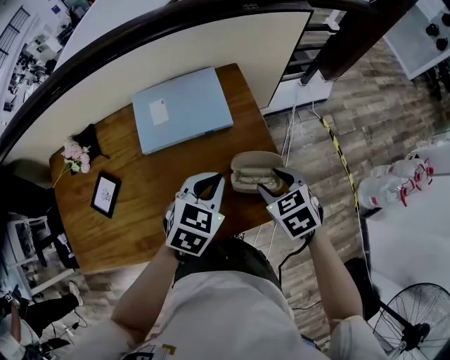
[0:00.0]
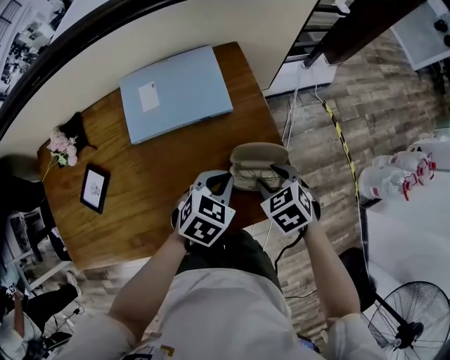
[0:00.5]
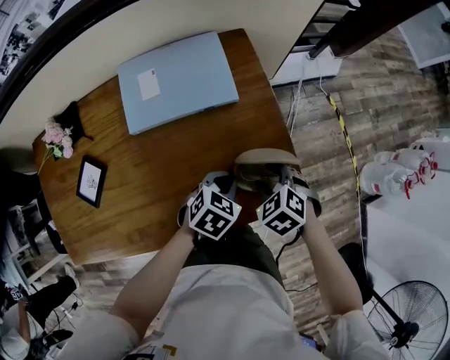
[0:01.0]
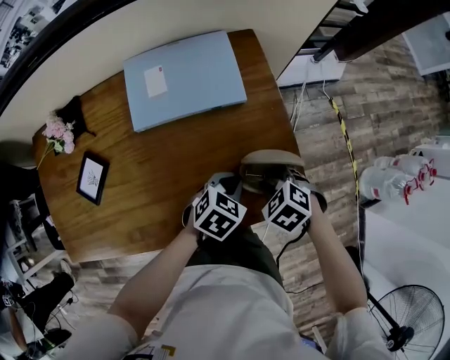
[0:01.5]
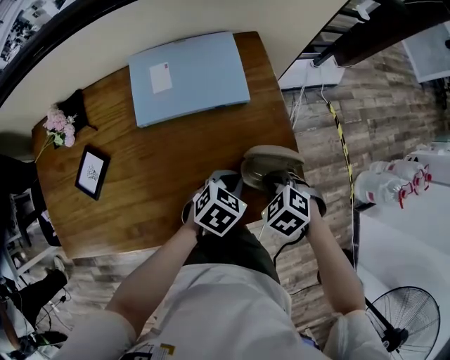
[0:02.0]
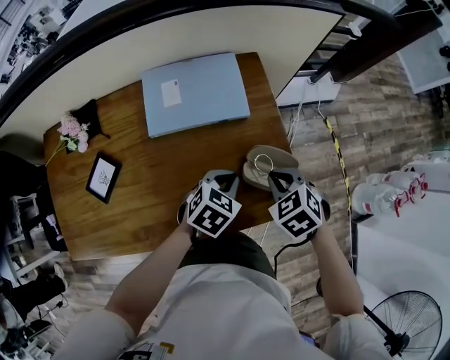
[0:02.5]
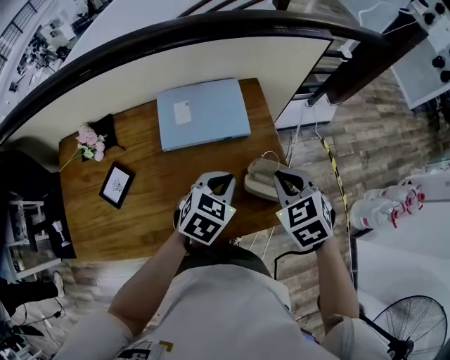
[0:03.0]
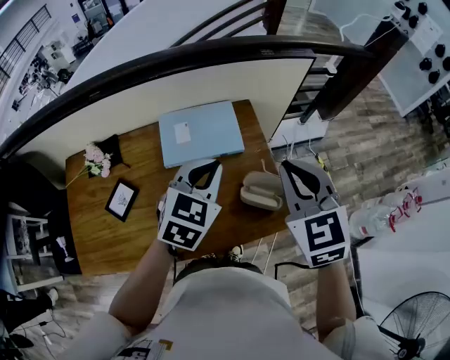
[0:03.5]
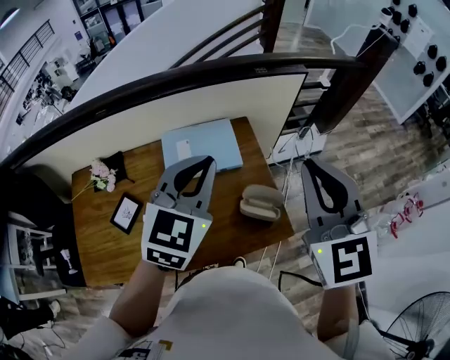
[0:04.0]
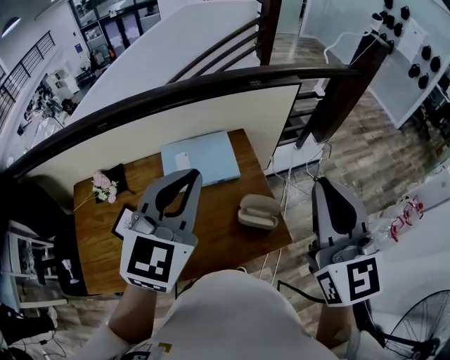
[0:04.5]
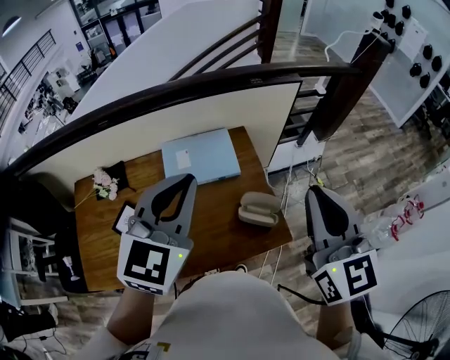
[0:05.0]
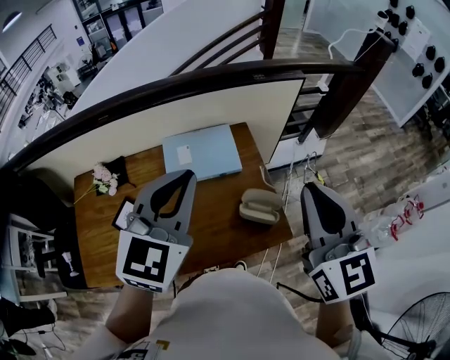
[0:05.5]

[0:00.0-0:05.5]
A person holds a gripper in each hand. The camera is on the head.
0:00.0 to 0:02.0: The grippers both shift downward by some 15 cm. The right gripper changes its angle by approximately 30 degrees, and closes up.
0:02.0 to 0:03.5: Both grippers move upward, some 35 cm. The right gripper angles its fingers upward, by roughly 50 degrees. The left gripper turns by about 30 degrees.
0:03.5 to 0:05.5: The left gripper moves upward, approximately 15 cm. The right gripper shifts about 15 cm upward and backward, and swivels some 30 degrees.

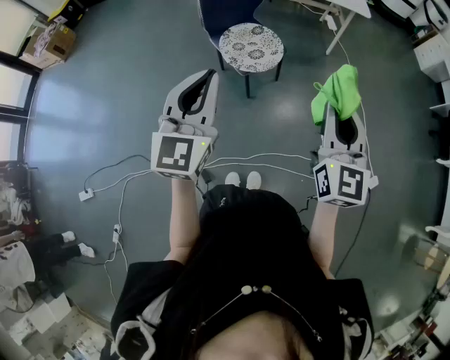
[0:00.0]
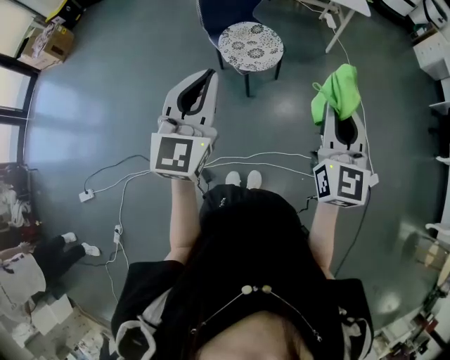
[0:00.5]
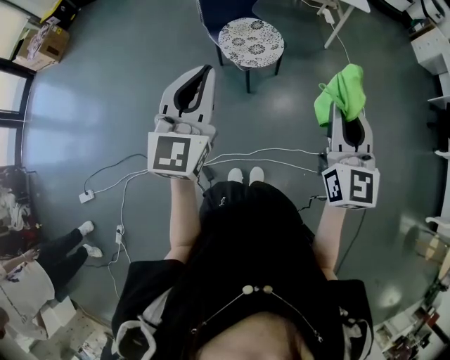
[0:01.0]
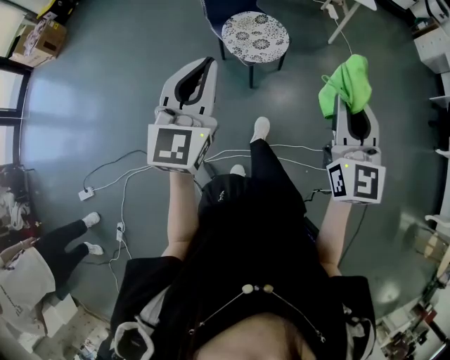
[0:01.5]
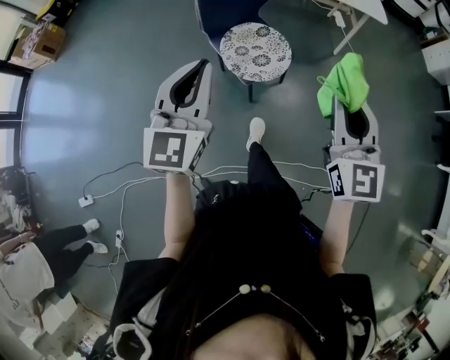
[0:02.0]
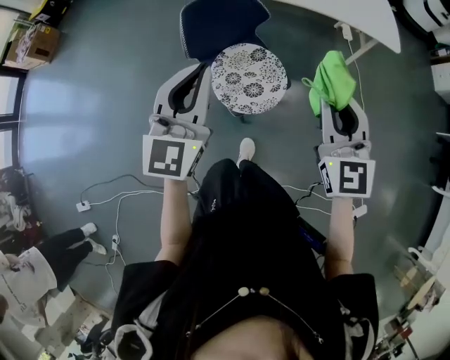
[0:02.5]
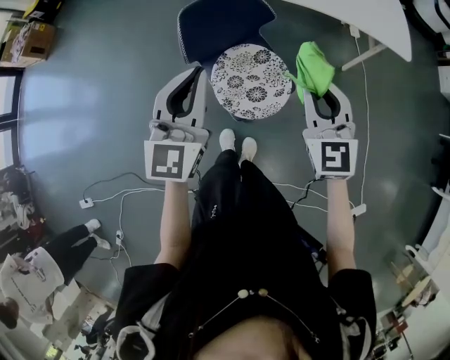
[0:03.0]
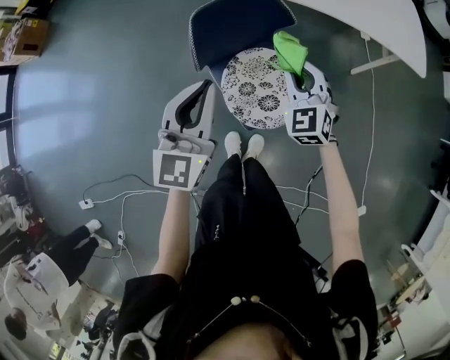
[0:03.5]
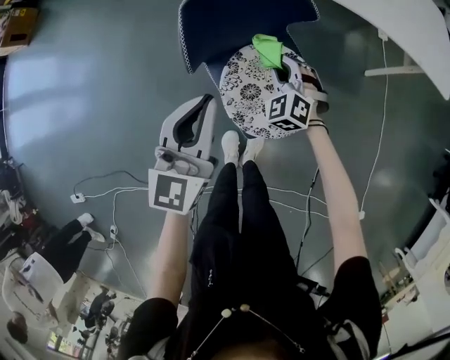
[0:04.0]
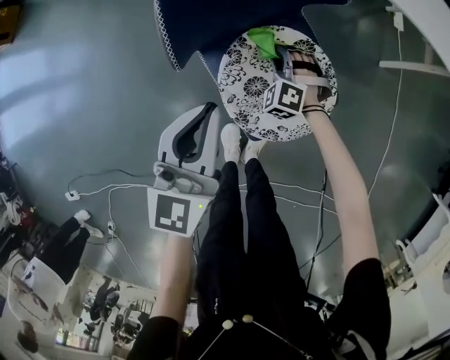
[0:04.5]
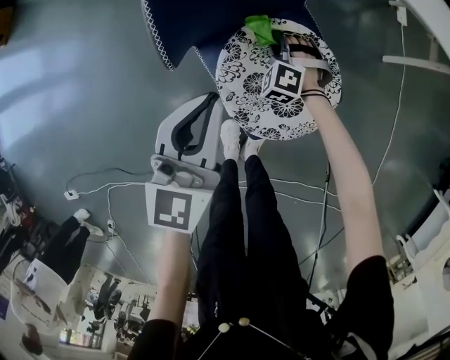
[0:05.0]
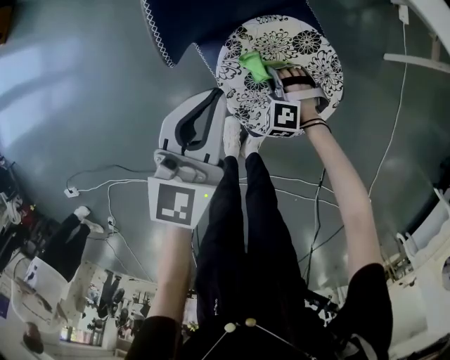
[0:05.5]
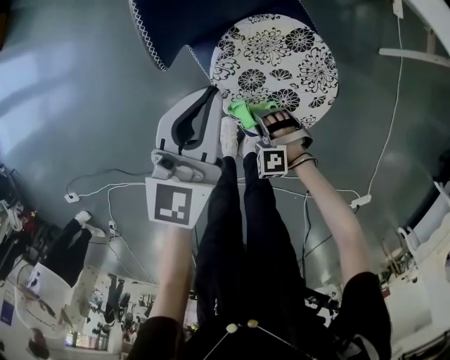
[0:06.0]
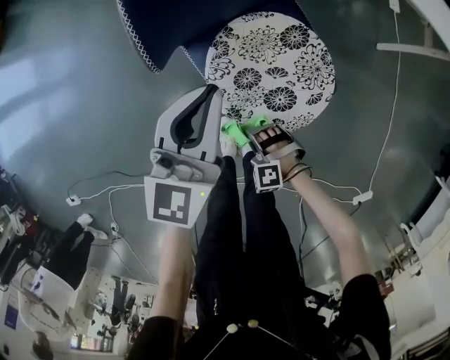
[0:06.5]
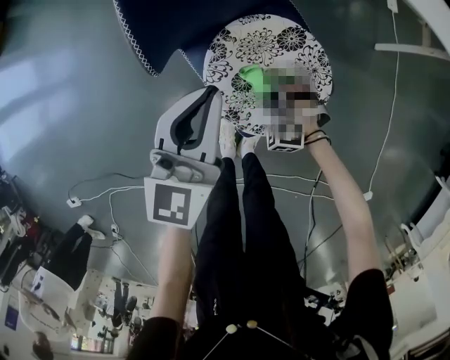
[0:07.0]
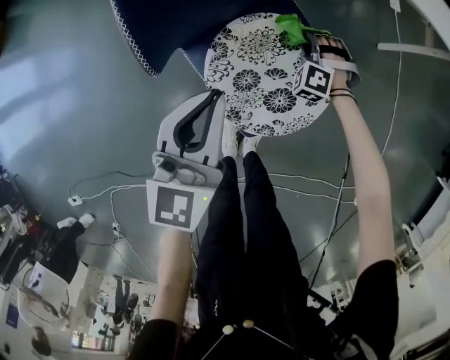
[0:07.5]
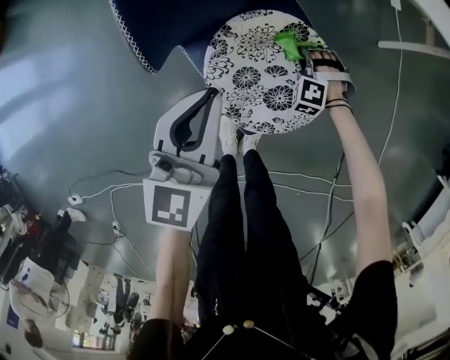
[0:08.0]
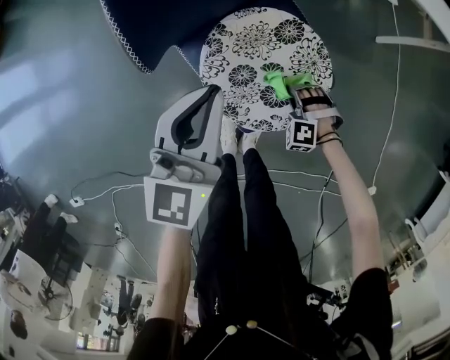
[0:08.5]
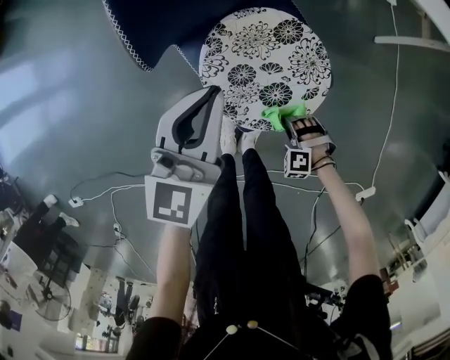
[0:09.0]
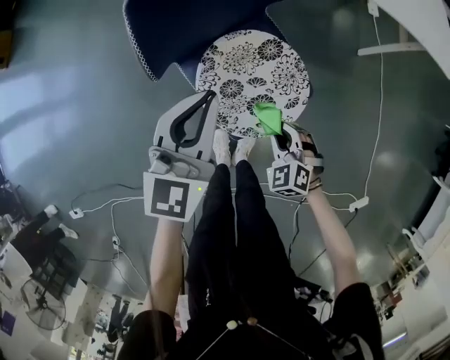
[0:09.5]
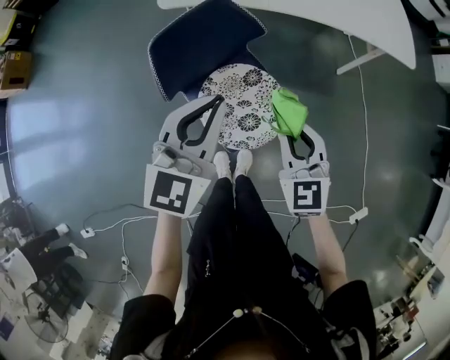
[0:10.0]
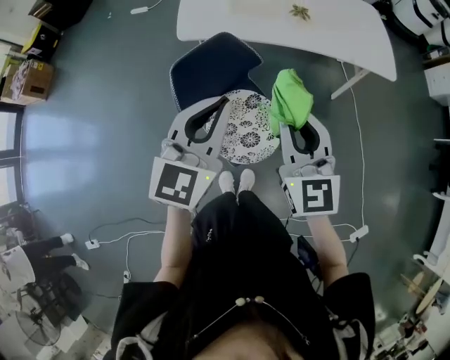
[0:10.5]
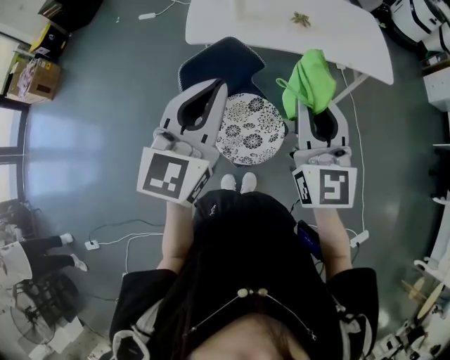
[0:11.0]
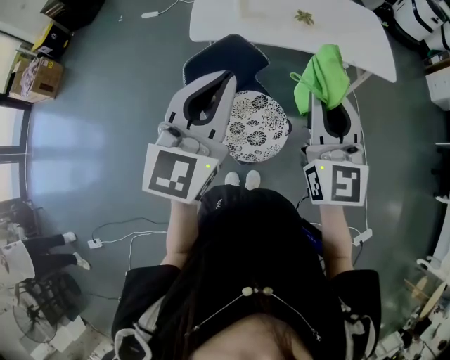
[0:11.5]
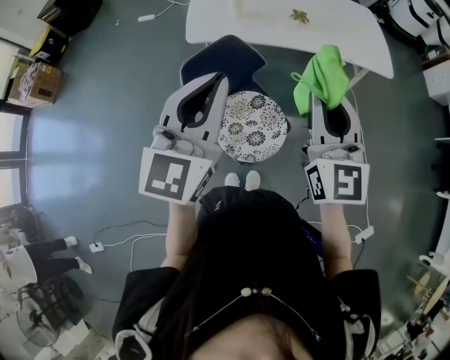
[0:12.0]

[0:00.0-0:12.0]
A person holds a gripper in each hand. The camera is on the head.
0:00.0 to 0:02.0: The grippers both shift forward by roughly 15 cm.
0:02.0 to 0:04.0: The pair of grippers is taken forward, roughly 50 cm. The left gripper moves downward, some 25 cm. Meanwhile the right gripper moves downward, some 40 cm, and points its fingers approximately 40 degrees further downward.
0:04.0 to 0:06.0: The right gripper heads downward and backward, covering roughly 30 cm, and changes its angle by roughly 40 degrees, while the left gripper shifts roughly 15 cm downward.
0:06.0 to 0:08.0: The right gripper shifts by about 25 cm, and swivels approximately 20 degrees.
0:08.0 to 0:10.0: The left gripper goes approximately 25 cm upward; the right gripper moves upward, about 50 cm, and rolls clockwise, seen from behind, by about 60 degrees.
0:10.0 to 0:12.0: The grippers both shift upward by approximately 25 cm. The right gripper rotates about 30 degrees.

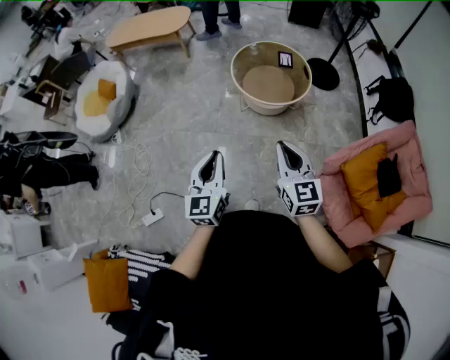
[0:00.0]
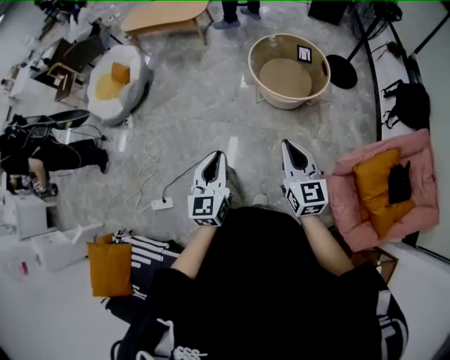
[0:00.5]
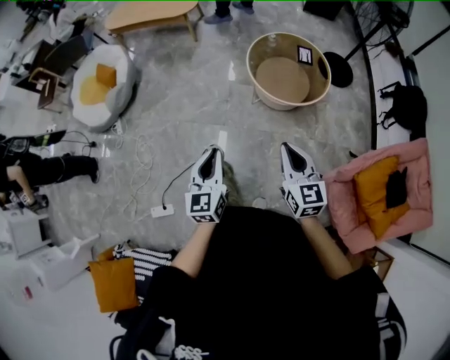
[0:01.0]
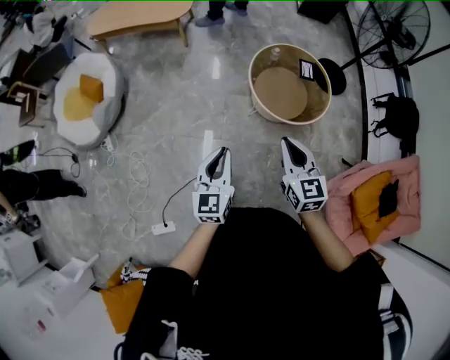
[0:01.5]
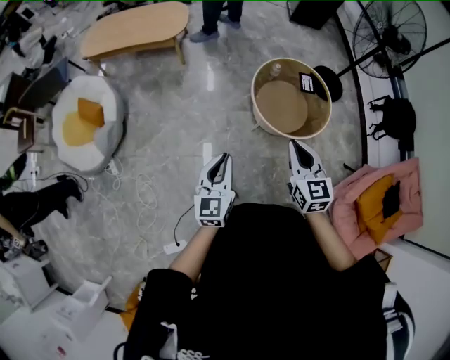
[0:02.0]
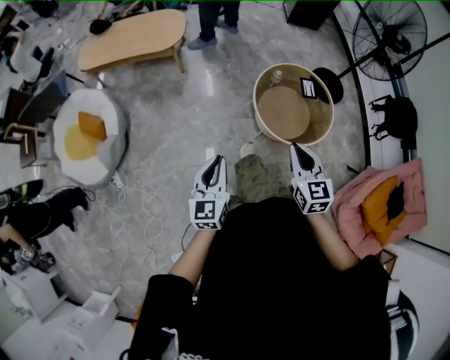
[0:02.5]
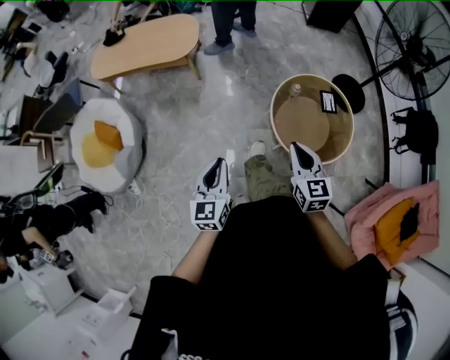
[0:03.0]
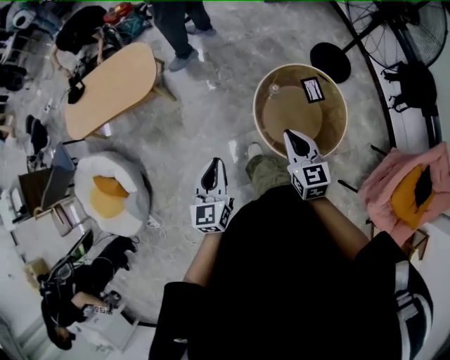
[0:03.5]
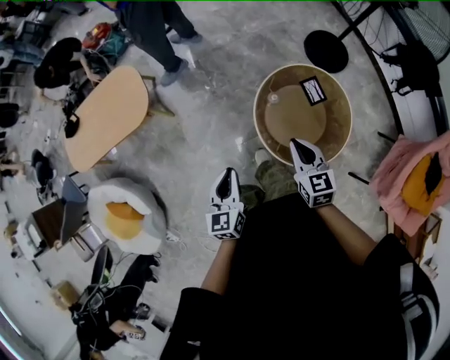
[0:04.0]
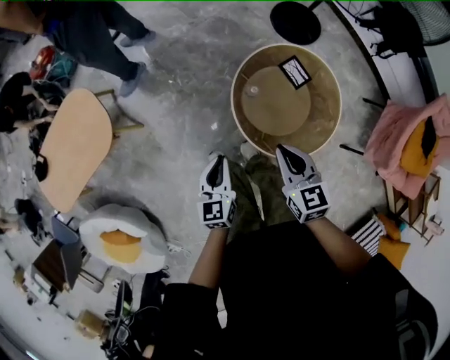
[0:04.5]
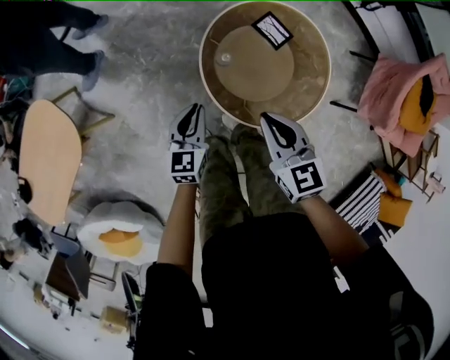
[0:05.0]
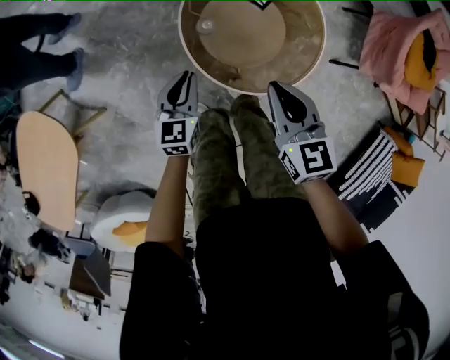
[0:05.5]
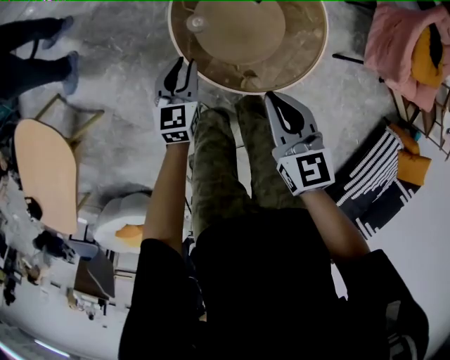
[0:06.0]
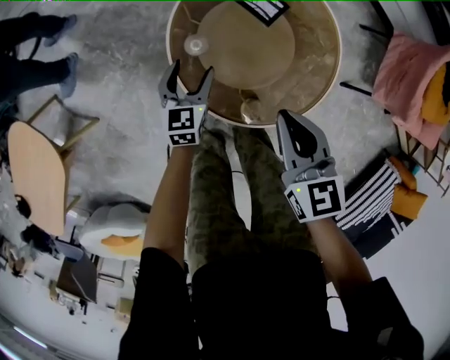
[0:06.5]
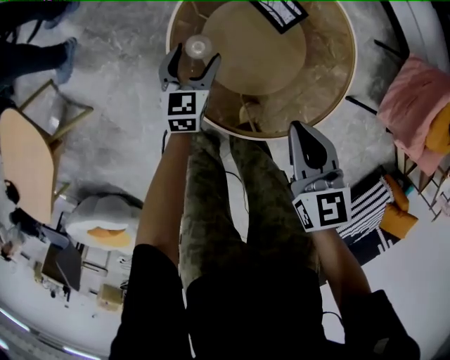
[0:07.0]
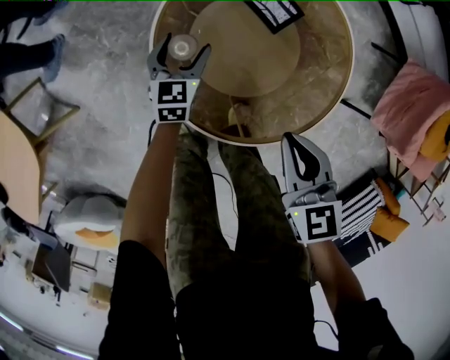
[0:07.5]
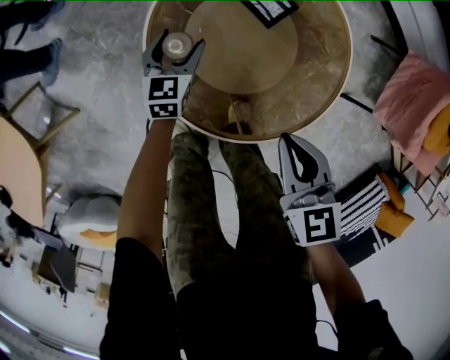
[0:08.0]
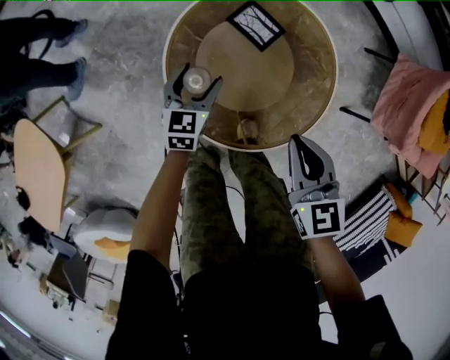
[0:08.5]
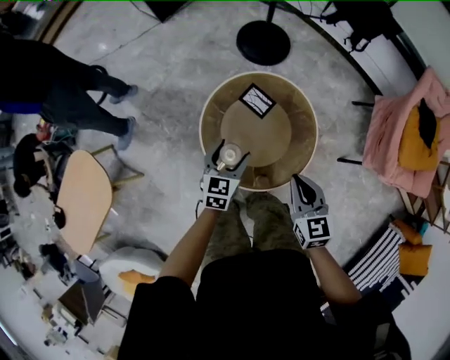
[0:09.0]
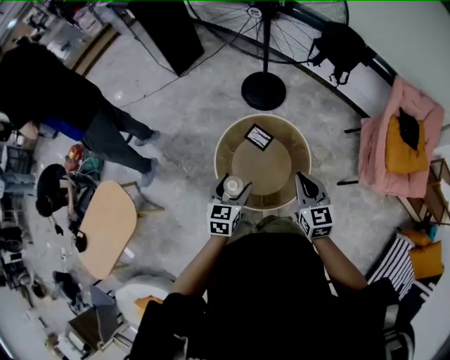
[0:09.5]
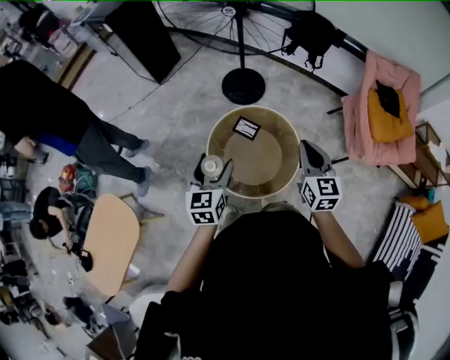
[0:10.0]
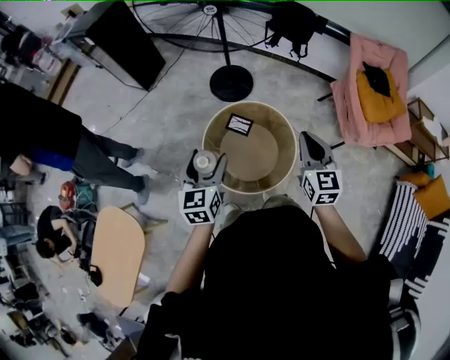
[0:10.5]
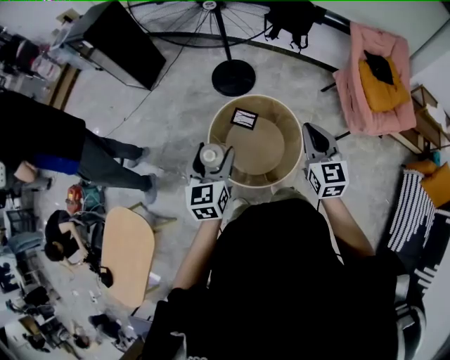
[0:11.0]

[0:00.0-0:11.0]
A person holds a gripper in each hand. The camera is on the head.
0:00.0 to 0:02.0: The pair of grippers is taken forward and to the left, some 50 cm.
0:02.0 to 0:03.5: Both grippers travel together forward, about 40 cm.
0:03.5 to 0:05.5: The right gripper heads downward, covering roughly 20 cm, and changes its angle by approximately 40 degrees. The left gripper moves downward, approximately 35 cm, and turns by roughly 50 degrees.
0:05.5 to 0:07.5: The left gripper travels downward, forward and to the right by some 30 cm, and opens up; the right gripper heads downward and to the right, covering approximately 20 cm.
0:07.5 to 0:09.0: The two grippers go roughly 30 cm upward.
0:09.0 to 0:11.0: The grippers both shift upward by approximately 30 cm. The right gripper swivels approximately 30 degrees.
